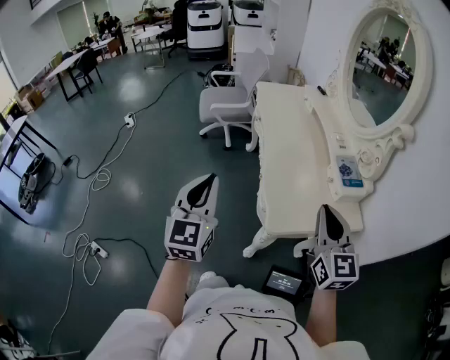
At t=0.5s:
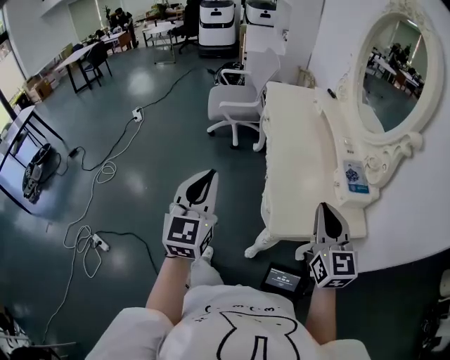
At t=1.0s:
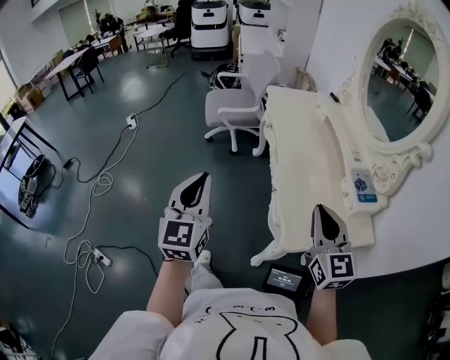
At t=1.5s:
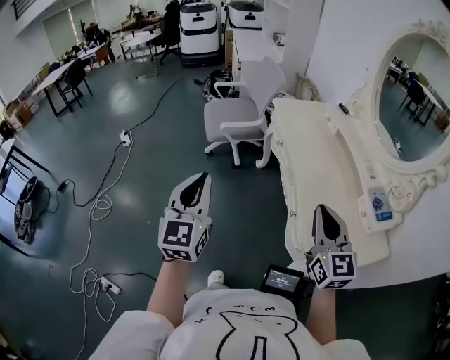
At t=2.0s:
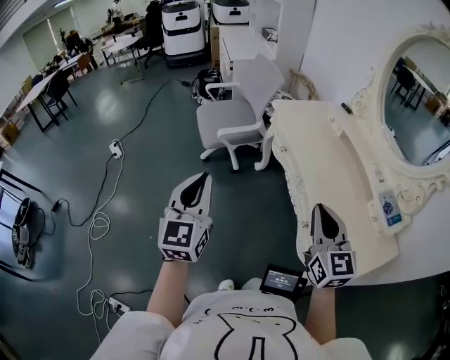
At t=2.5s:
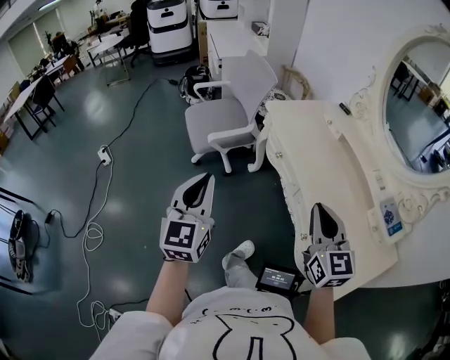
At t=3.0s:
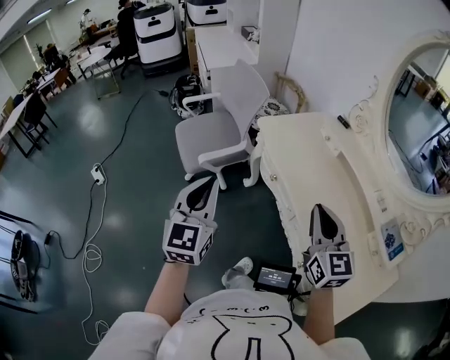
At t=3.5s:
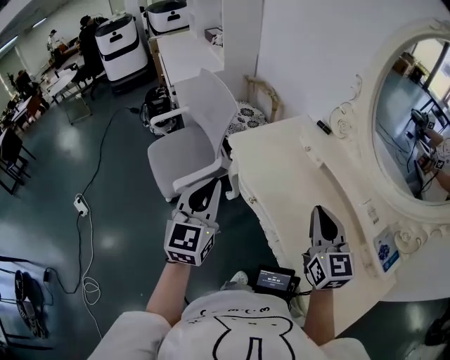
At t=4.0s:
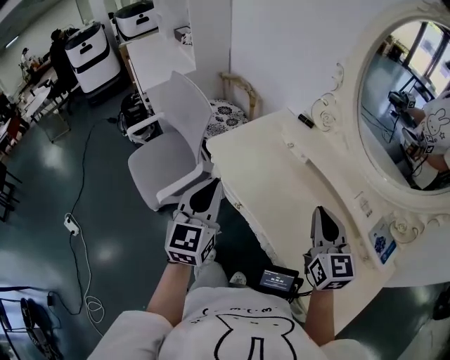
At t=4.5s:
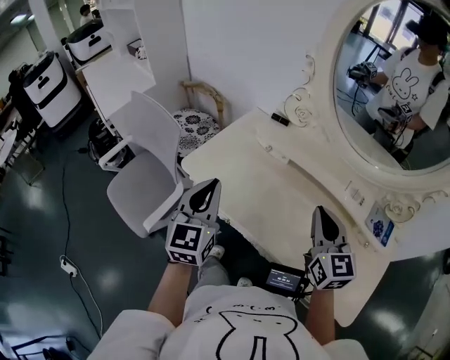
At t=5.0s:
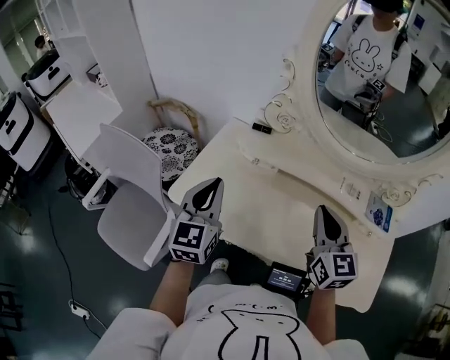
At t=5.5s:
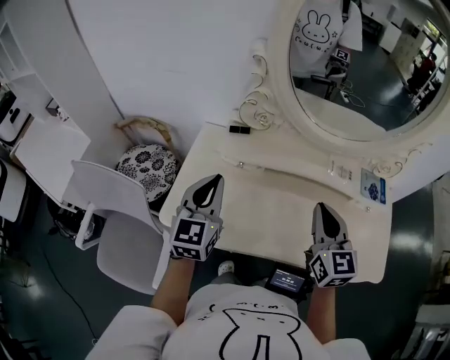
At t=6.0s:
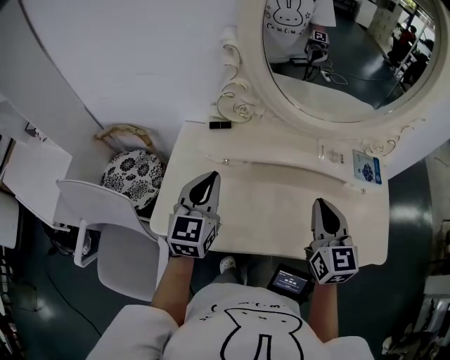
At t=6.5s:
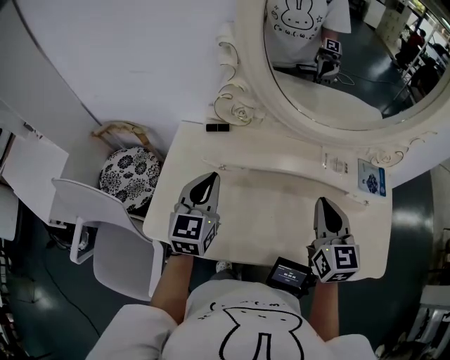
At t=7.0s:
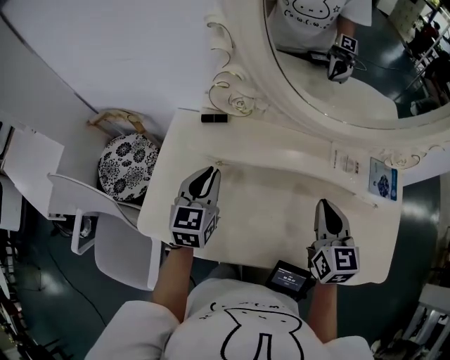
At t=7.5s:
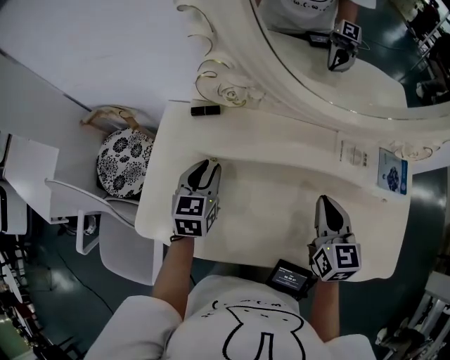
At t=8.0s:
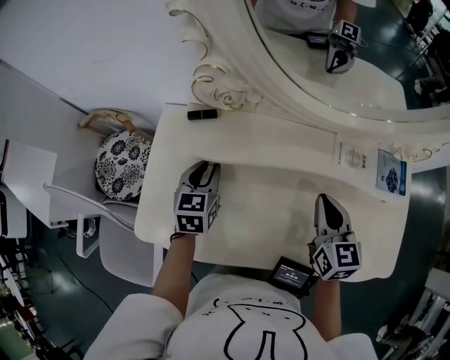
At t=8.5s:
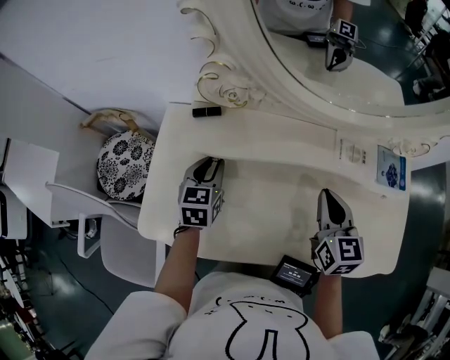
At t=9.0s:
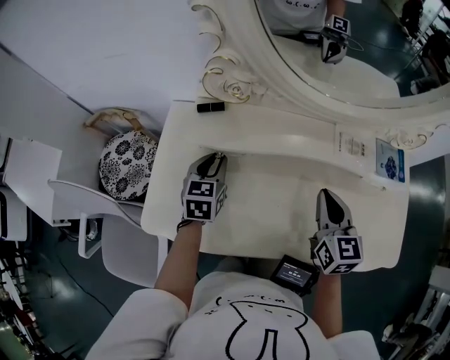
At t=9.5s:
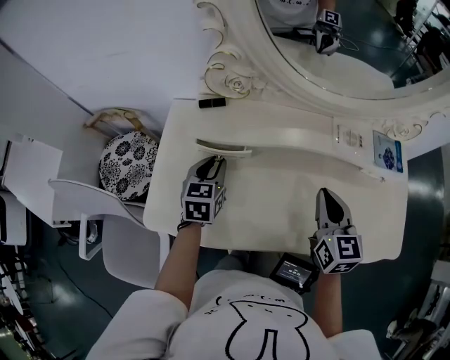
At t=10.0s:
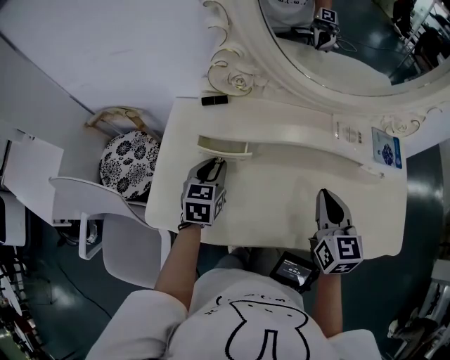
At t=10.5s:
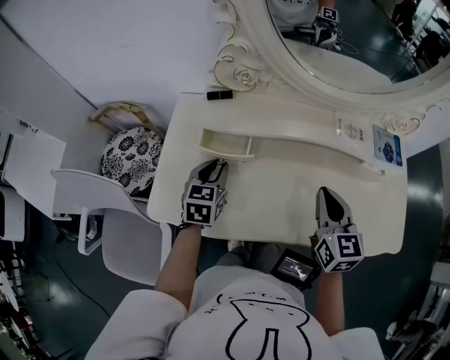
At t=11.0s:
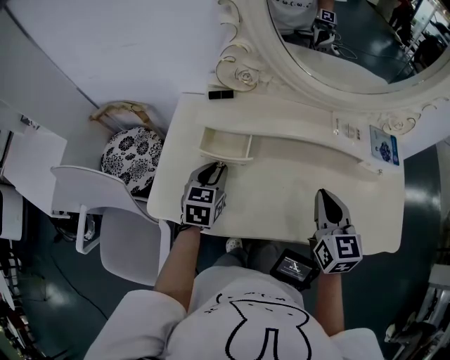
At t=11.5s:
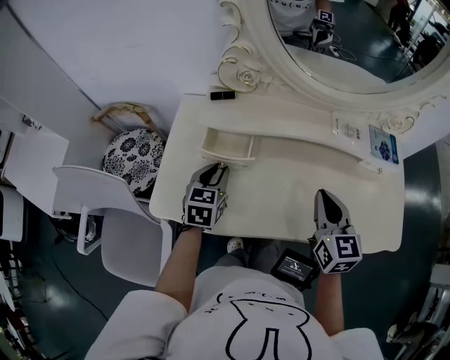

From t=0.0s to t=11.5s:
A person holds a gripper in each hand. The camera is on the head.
From t=0.0s to t=2.0s: The two grippers go about 35 cm forward and to the left.
From t=2.0s to t=4.0s: The left gripper ends up roughly 40 cm from where it was, and swivels approximately 30 degrees; the right gripper moves some 30 cm, and rotates approximately 20 degrees.
From t=4.0s to t=6.0s: The left gripper changes place by approximately 25 cm, and turns by about 50 degrees. The right gripper changes place by about 5 cm, and changes its angle by approximately 50 degrees.
From t=6.0s to t=7.5s: The grippers both shift downward and forward by roughly 15 cm. The left gripper changes its angle by about 20 degrees, and opens.
From t=7.5s to t=9.5s: There are only small adjustments of the grippers.
From t=9.5s to t=11.5s: The right gripper changes place by some 5 cm; the left gripper travels backward by roughly 5 cm.

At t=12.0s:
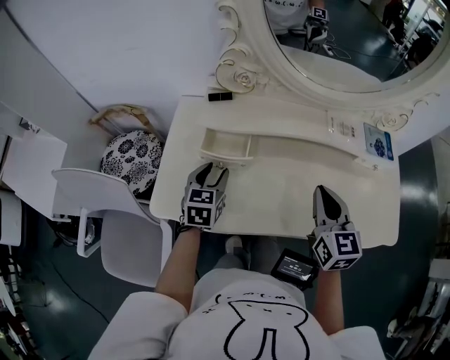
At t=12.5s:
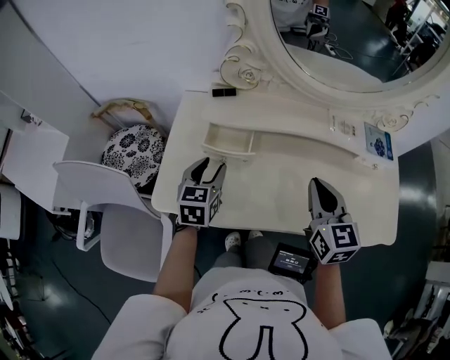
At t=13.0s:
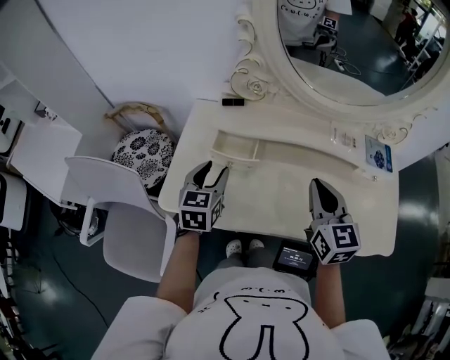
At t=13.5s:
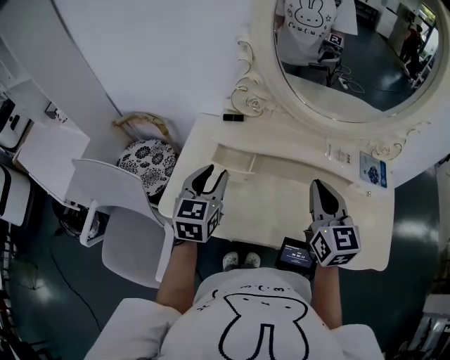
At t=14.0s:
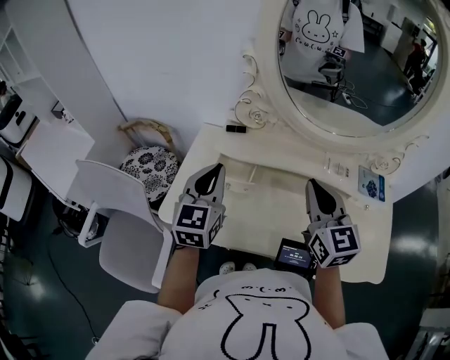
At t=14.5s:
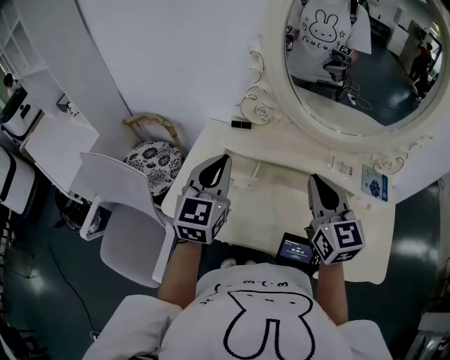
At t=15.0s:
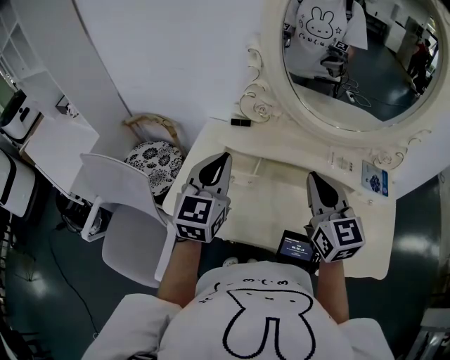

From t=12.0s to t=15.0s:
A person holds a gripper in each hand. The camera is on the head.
From t=12.0s to t=13.5s: The left gripper travels upward by about 15 cm. Meanwhile the right gripper heads upward, covering some 10 cm.
From t=13.5s to t=15.0s: The left gripper moves upward, approximately 10 cm, and closes its fingers, while the right gripper shifts by some 5 cm.

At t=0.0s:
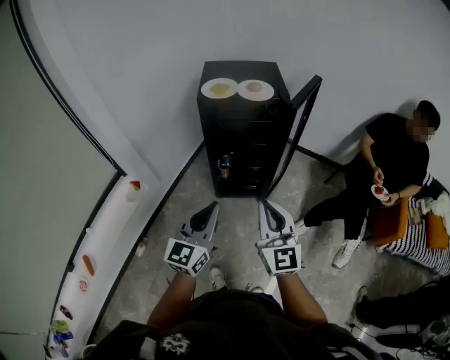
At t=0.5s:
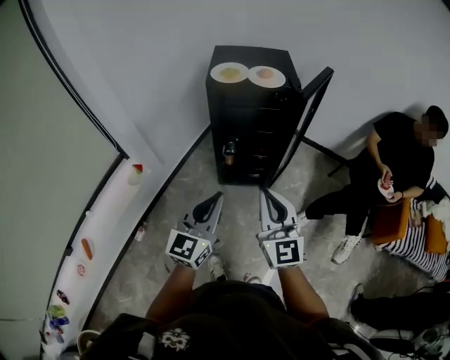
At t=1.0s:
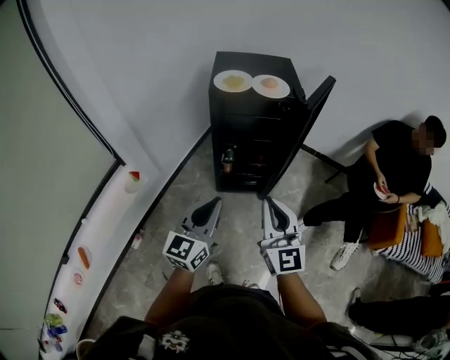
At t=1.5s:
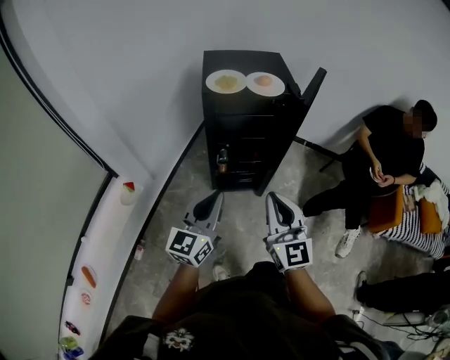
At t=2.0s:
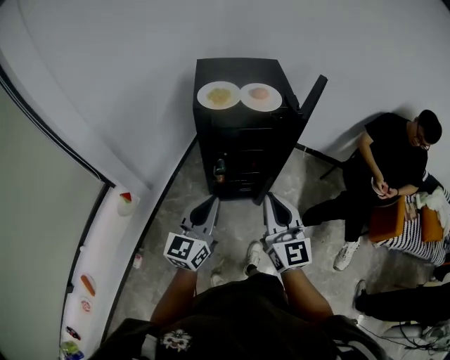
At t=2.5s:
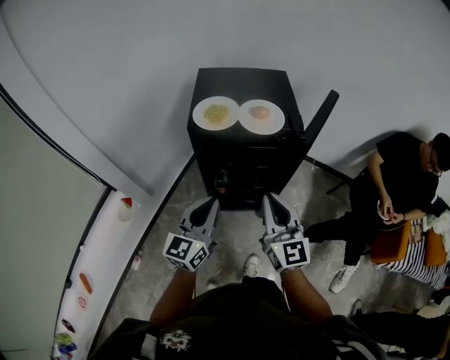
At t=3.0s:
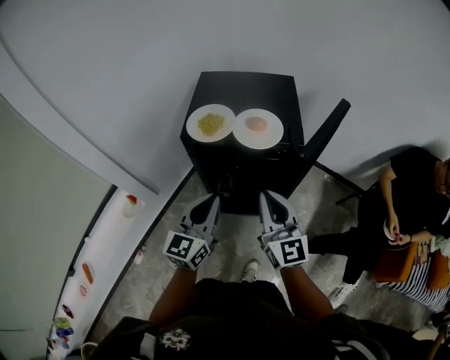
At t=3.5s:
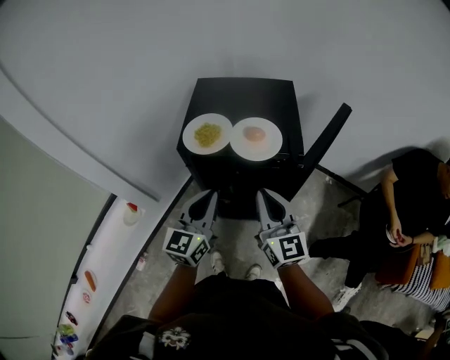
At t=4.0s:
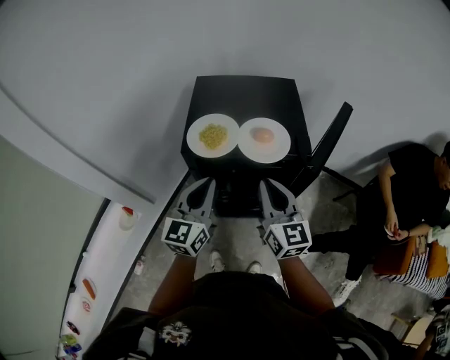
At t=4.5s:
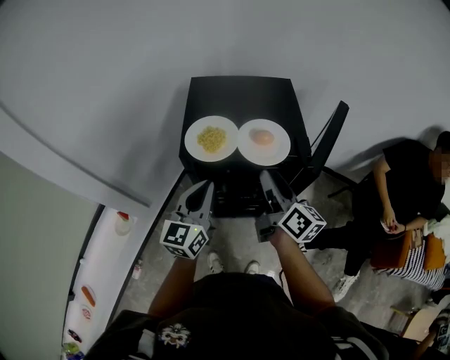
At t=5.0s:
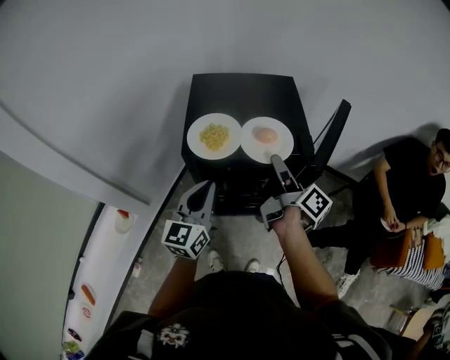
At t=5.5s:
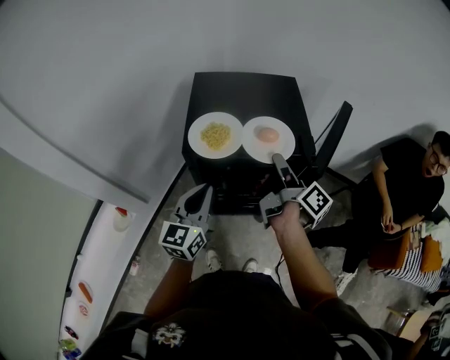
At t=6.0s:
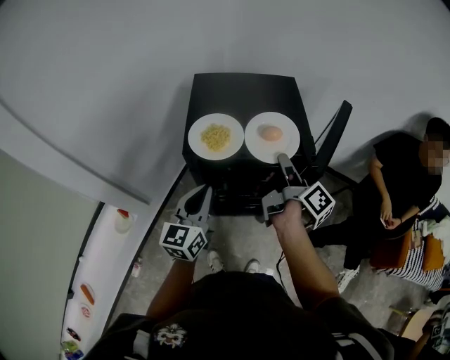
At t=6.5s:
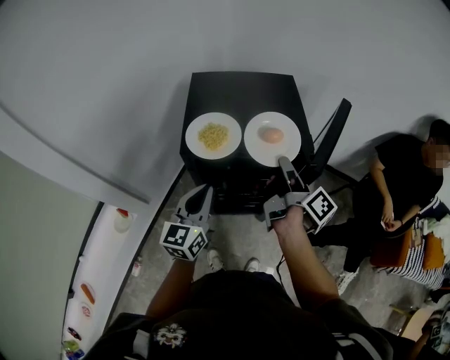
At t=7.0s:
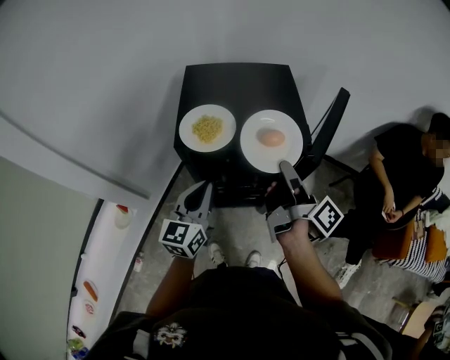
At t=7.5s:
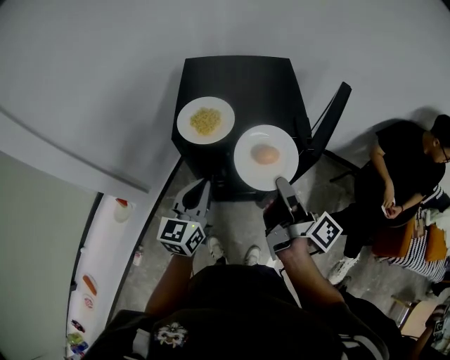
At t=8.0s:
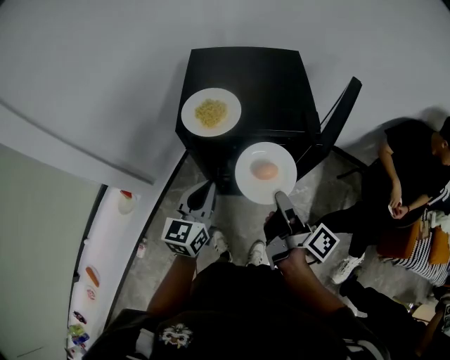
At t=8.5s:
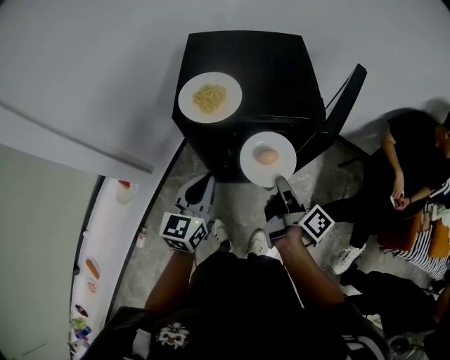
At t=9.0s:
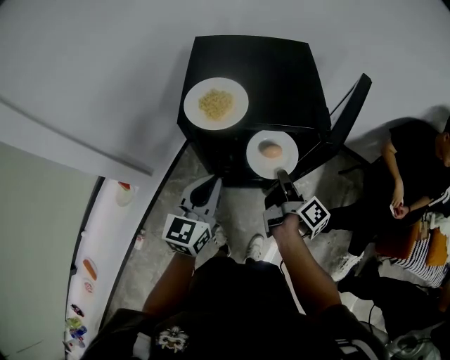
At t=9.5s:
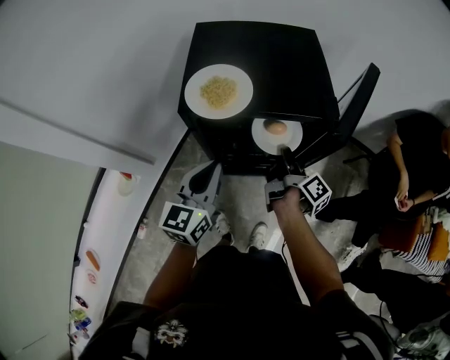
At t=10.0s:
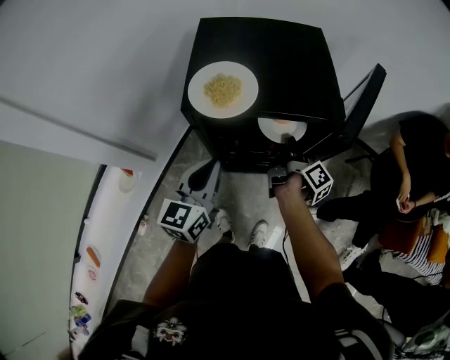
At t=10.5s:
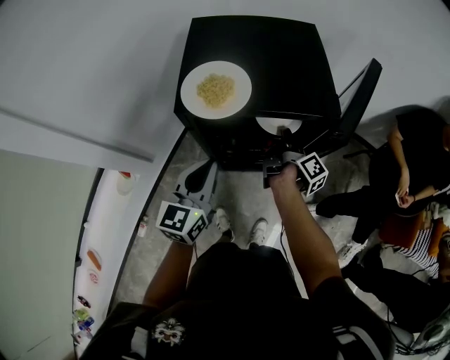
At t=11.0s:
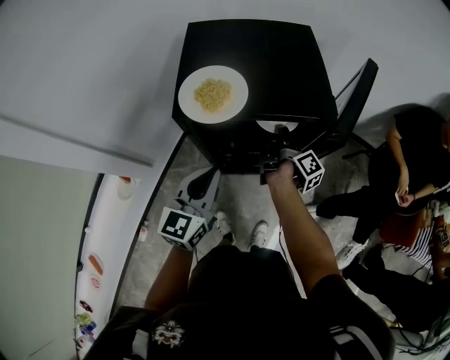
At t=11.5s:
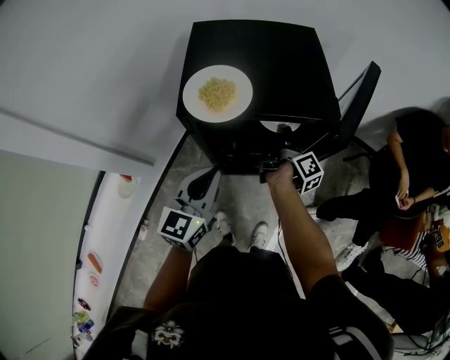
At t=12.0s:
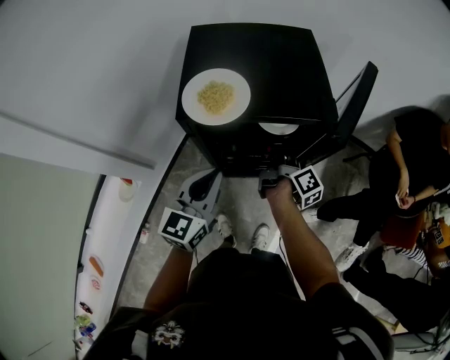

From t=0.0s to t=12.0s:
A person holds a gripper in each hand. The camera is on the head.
From t=0.0s to t=2.0s: Both grippers travel together forward, approximately 15 cm.
From t=2.0s to t=4.0s: The grippers both shift forward by roughly 25 cm.
From t=4.0s to t=6.0s: The right gripper heads forward, covering roughly 10 cm, rolls clockwise, seen from behind, by approximately 70 degrees, and opens, then closes again.
From t=6.0s to t=8.0s: The right gripper shifts approximately 15 cm backward; the left gripper changes place by roughly 5 cm.
From t=8.0s to t=10.0s: The right gripper moves forward and downward, about 20 cm.
From t=10.0s to t=12.0s: The grippers stay close to where they were, moving slightly.
